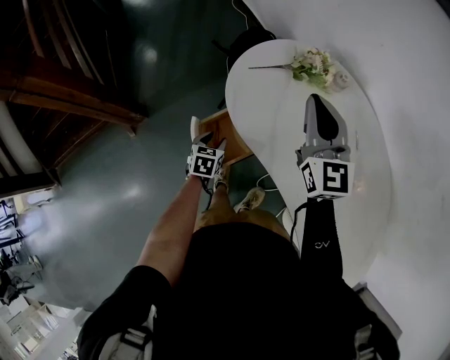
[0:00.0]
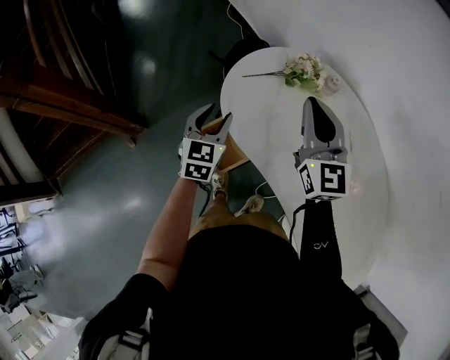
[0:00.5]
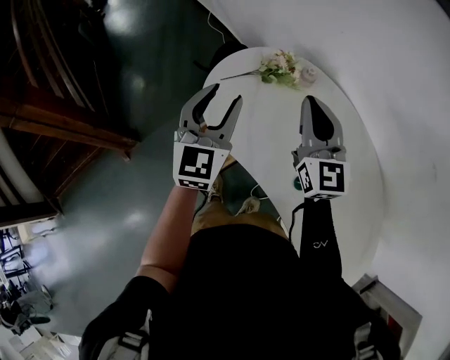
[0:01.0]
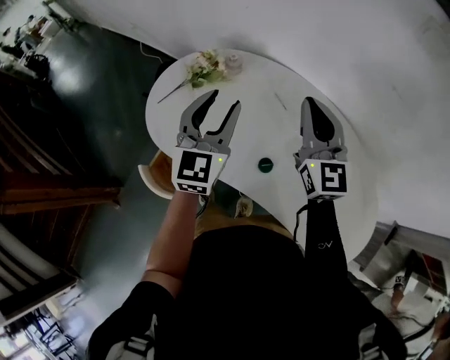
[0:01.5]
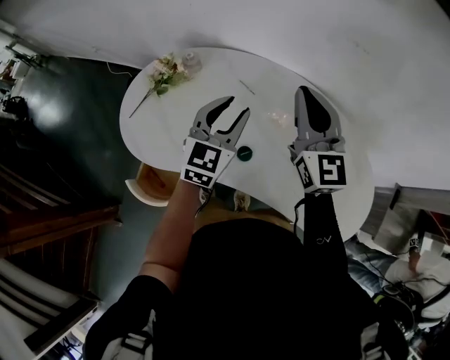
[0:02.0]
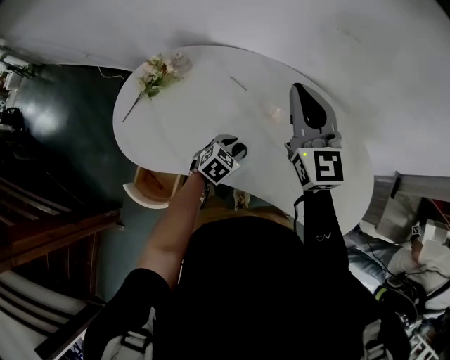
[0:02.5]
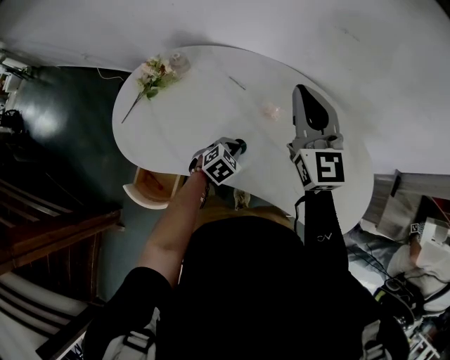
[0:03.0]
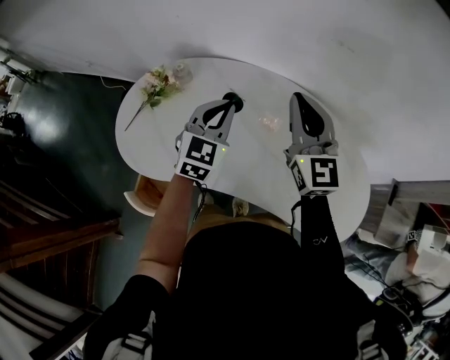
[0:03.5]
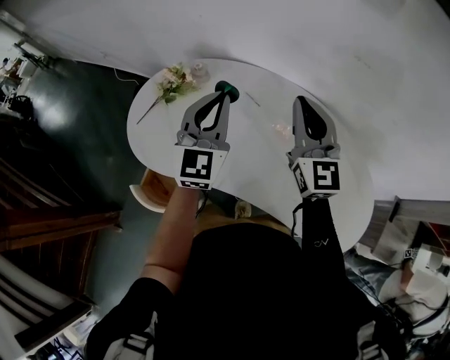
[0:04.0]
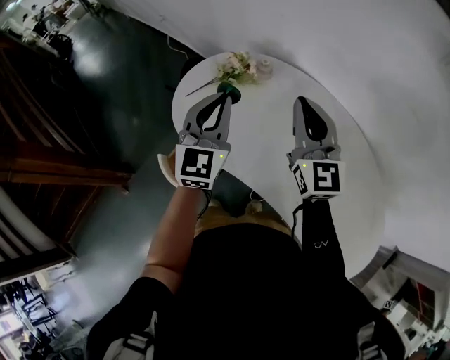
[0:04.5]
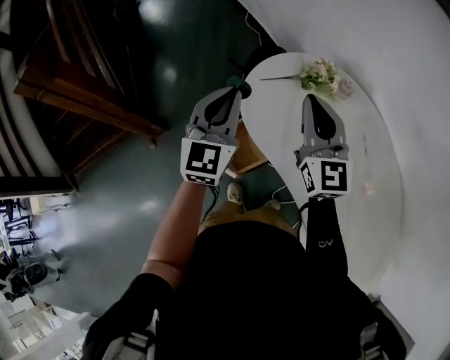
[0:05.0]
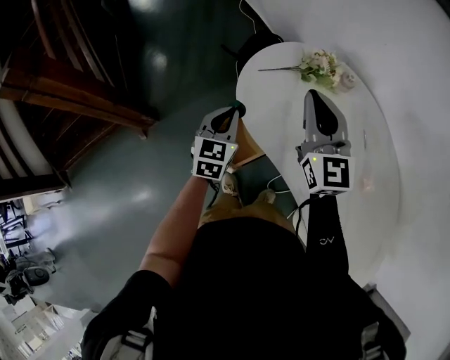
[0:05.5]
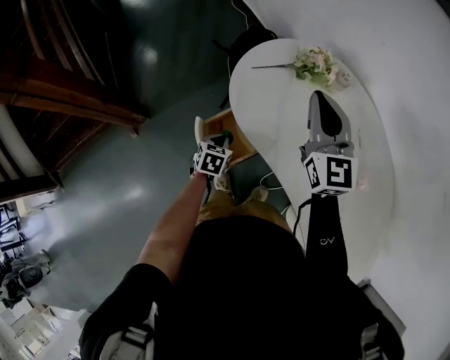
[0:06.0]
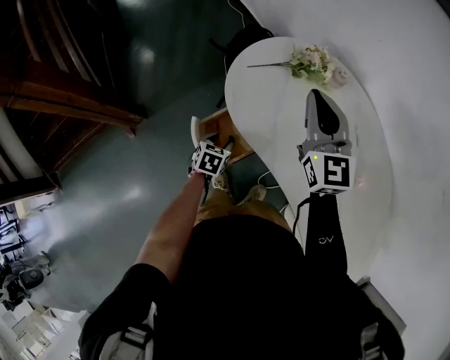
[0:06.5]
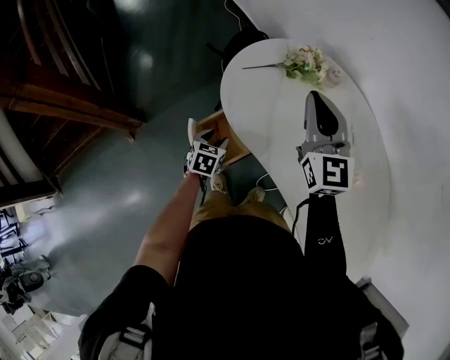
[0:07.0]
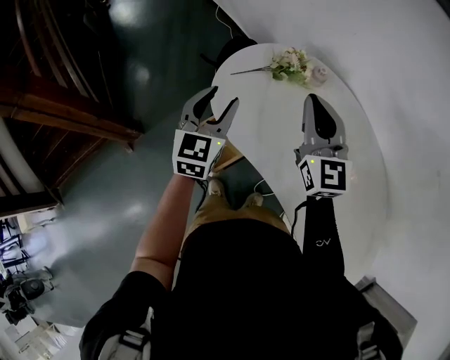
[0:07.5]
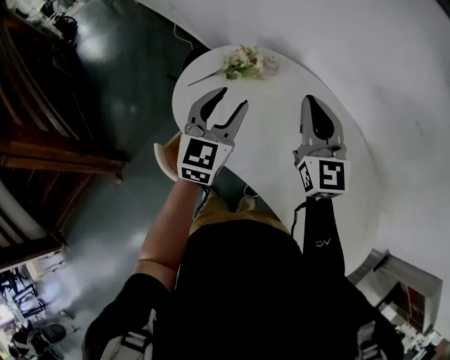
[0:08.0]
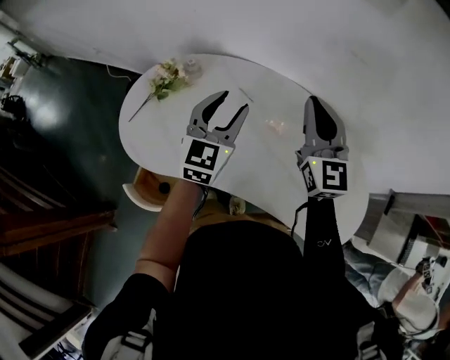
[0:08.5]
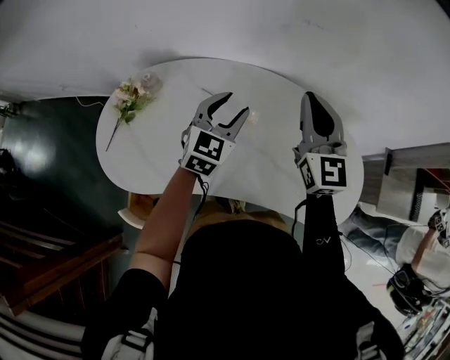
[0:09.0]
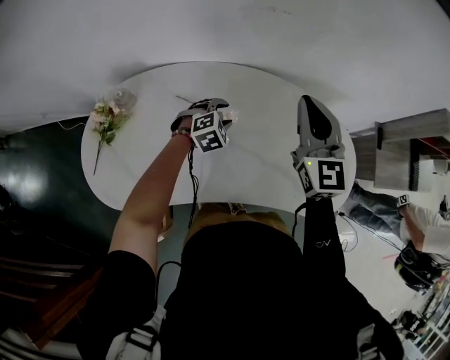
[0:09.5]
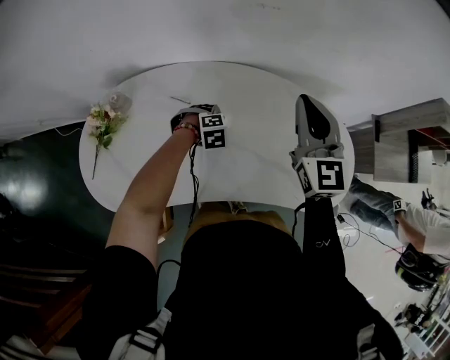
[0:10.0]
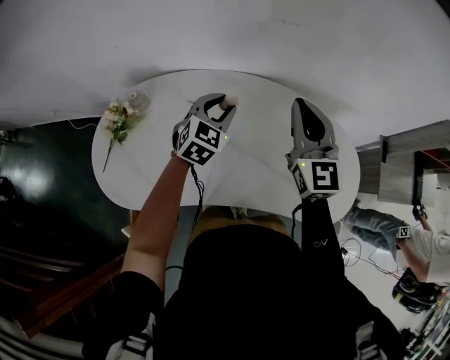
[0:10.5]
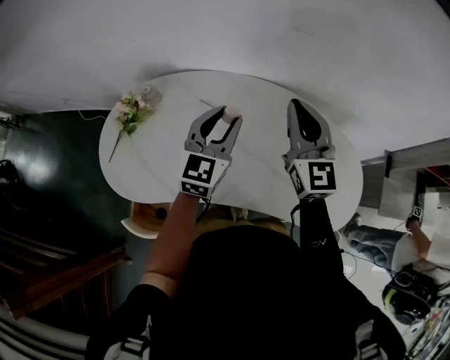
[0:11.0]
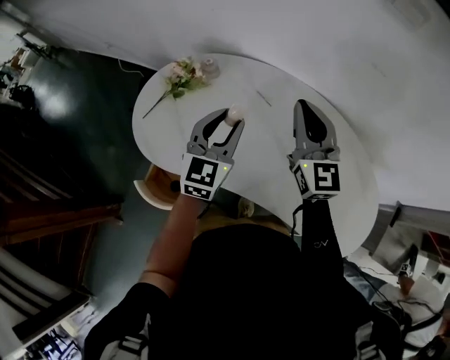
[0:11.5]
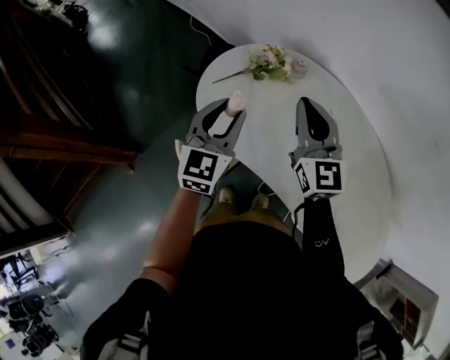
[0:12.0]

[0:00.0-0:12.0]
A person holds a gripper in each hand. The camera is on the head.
0:00.0 to 0:02.0: The right gripper changes place by approximately 35 cm, and swivels some 40 degrees. Meanwhile the left gripper moves approximately 50 cm, and angles its fingers upward, by approximately 40 degrees.
0:02.0 to 0:04.0: The left gripper goes some 5 cm to the left, travels downward and back again, roughly 25 cm each way, and closes up.
0:04.0 to 0:06.0: The right gripper ends up some 35 cm from where it was, and changes its angle by approximately 40 degrees. Meanwhile the left gripper travels downward by some 35 cm, and points its fingers approximately 60 degrees further downward.
0:06.0 to 0:08.0: The right gripper moves to the right and backward, approximately 20 cm. The left gripper moves upward and to the right, some 40 cm, tilts its fingers about 50 degrees upward, and opens.
0:08.0 to 0:10.0: The right gripper moves approximately 30 cm, and turns by some 50 degrees. Meanwhile the left gripper shifts by about 50 cm, and tilts its fingers some 70 degrees downward.
0:10.0 to 0:12.0: Both grippers are carried some 40 cm. The right gripper changes its angle by approximately 50 degrees; the left gripper tips its fingers upward by roughly 60 degrees.

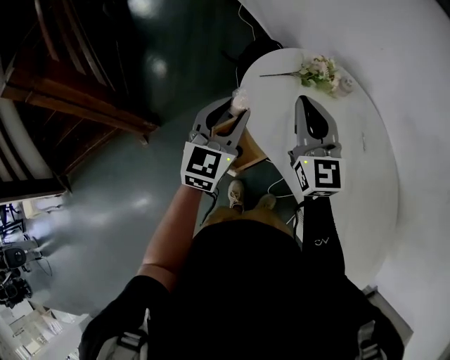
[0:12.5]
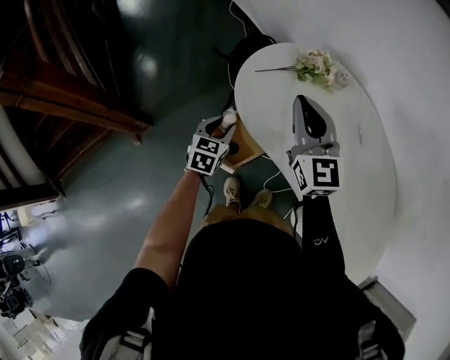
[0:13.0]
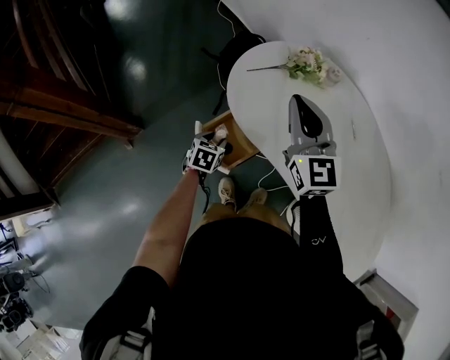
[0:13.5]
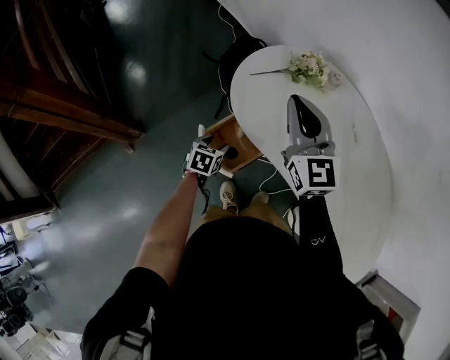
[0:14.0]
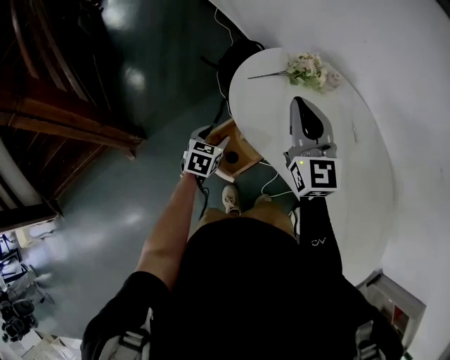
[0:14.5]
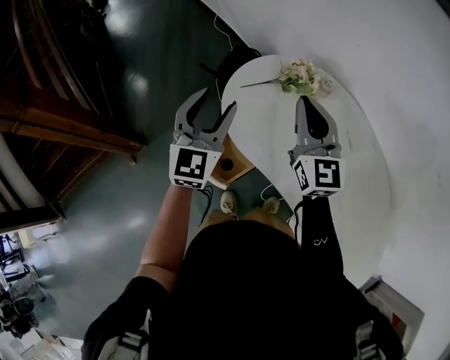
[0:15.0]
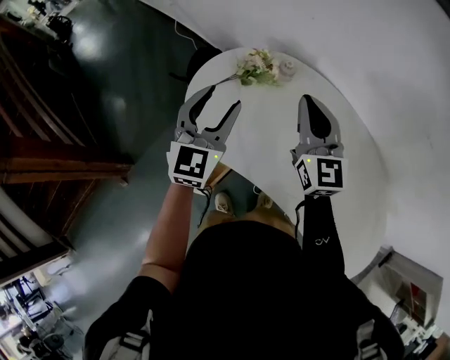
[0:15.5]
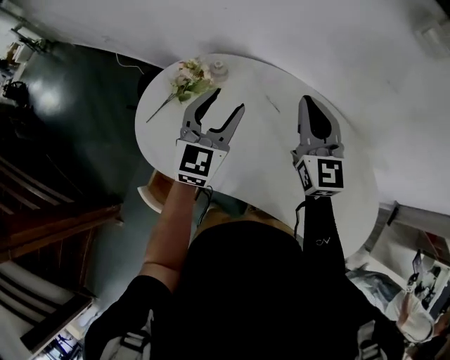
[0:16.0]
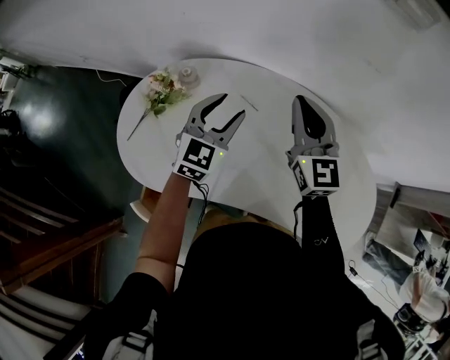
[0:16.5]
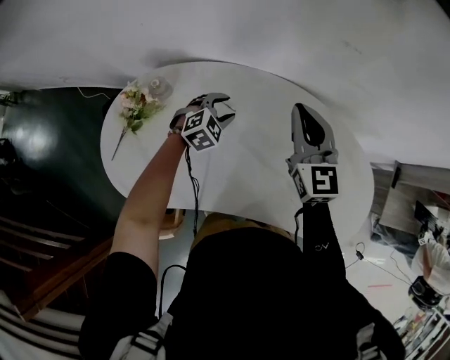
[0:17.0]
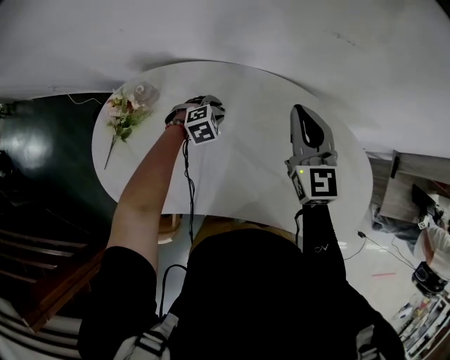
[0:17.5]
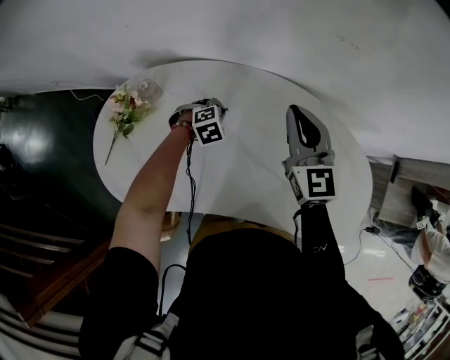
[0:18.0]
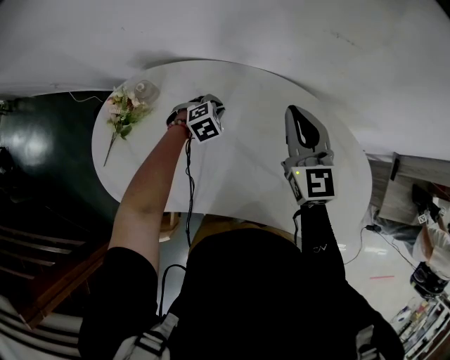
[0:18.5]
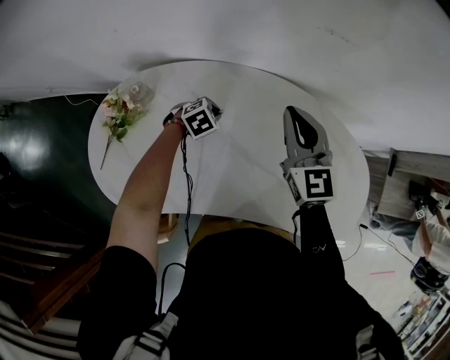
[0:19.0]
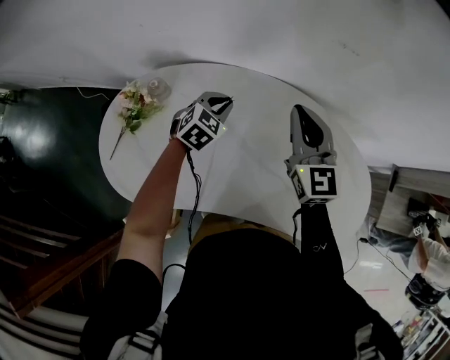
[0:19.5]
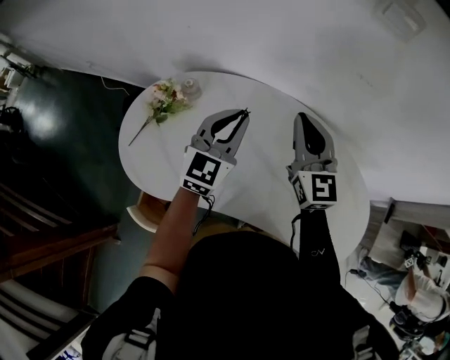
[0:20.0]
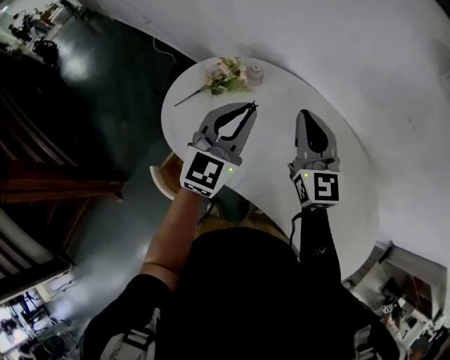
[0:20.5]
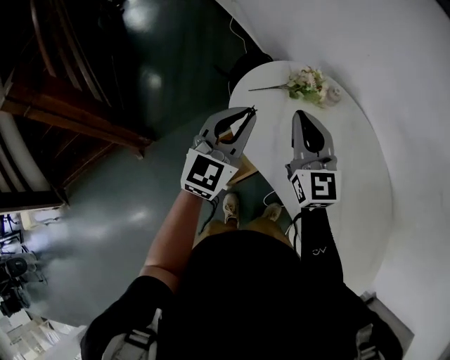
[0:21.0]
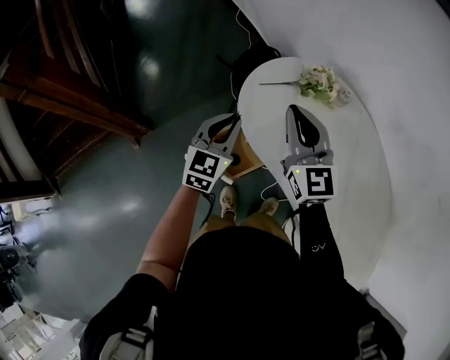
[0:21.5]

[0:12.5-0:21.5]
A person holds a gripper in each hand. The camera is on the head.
0:12.5 to 0:14.5: The left gripper moves downward, roughly 25 cm, tips its fingers downward by roughly 30 degrees, and opens.
0:14.5 to 0:17.0: The two grippers travel together, roughly 50 cm. The left gripper rolls clockwise, seen from behind, by some 80 degrees. Meanwhile the right gripper swivels some 50 degrees.
0:17.0 to 0:19.5: The left gripper closes up.
0:19.5 to 0:21.5: The pair of grippers is taken roughly 50 cm. The left gripper changes its angle by approximately 70 degrees. The right gripper changes its angle by approximately 50 degrees.

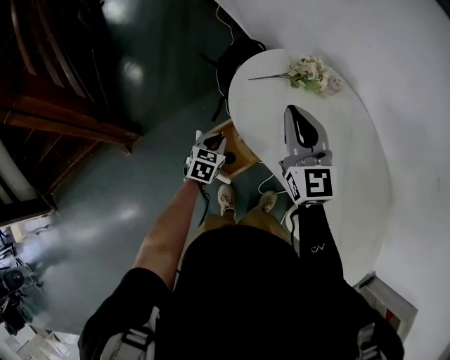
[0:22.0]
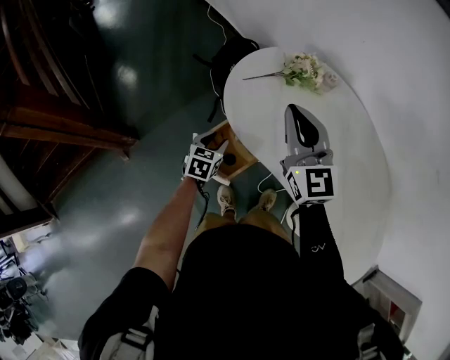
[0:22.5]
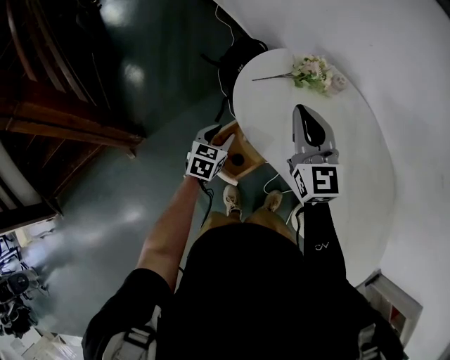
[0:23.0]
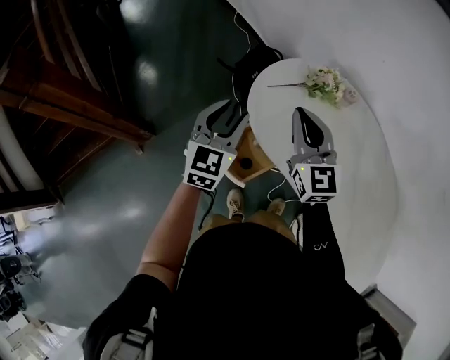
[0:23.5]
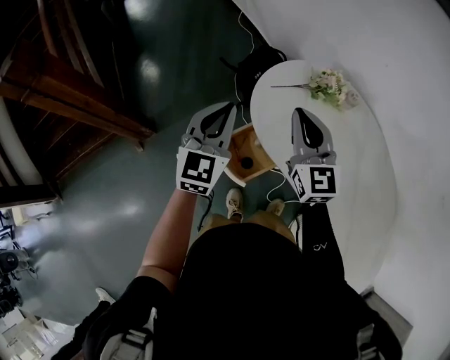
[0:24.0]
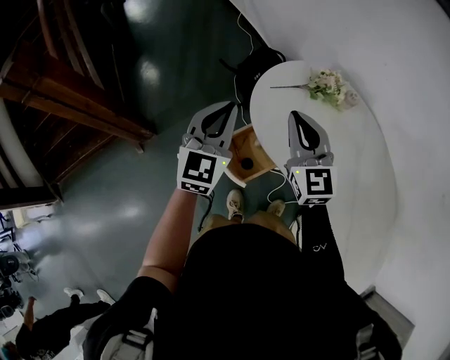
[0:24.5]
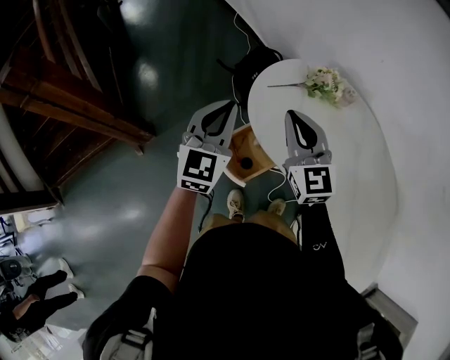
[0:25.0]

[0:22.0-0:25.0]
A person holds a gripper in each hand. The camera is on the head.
0:22.0 to 0:23.5: The left gripper moves upward, roughly 25 cm, angles its fingers upward, by about 30 degrees, and opens.
0:23.5 to 0:25.0: The left gripper closes up.

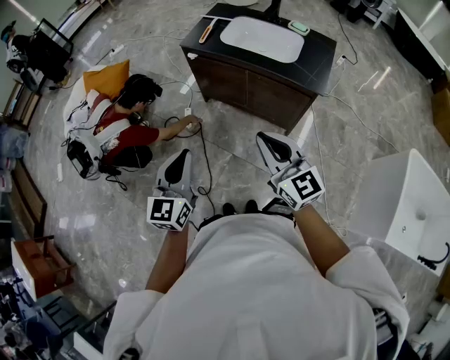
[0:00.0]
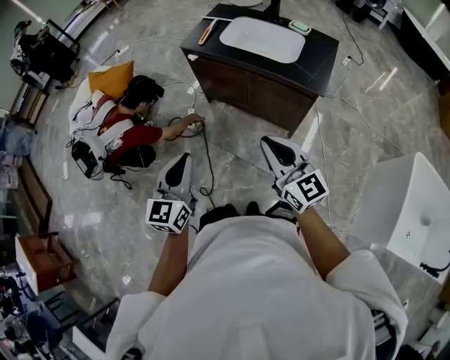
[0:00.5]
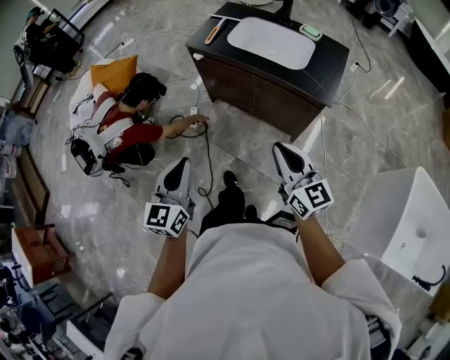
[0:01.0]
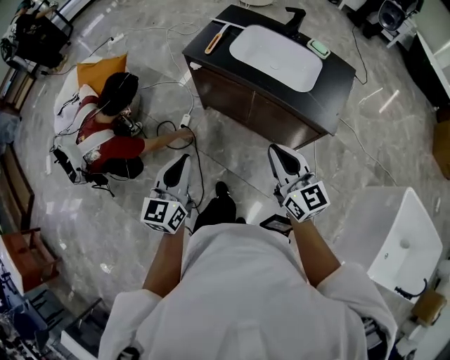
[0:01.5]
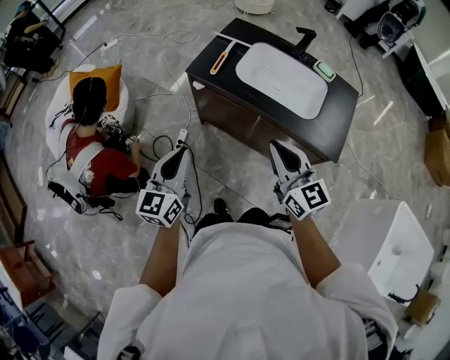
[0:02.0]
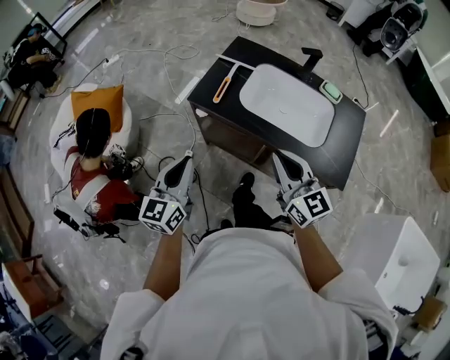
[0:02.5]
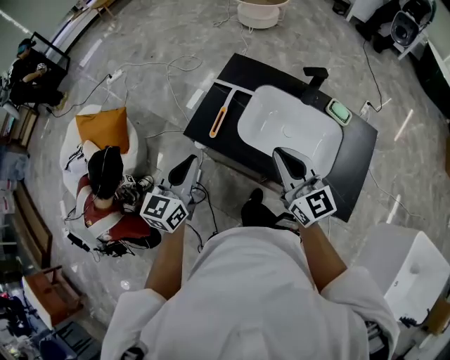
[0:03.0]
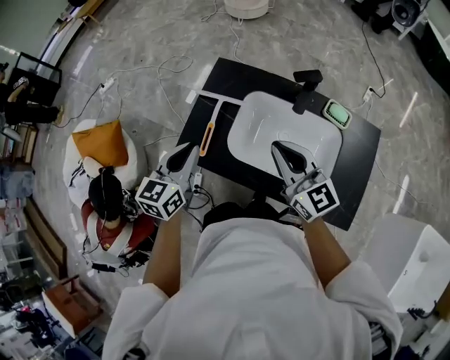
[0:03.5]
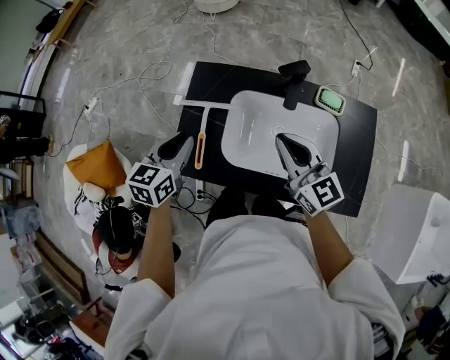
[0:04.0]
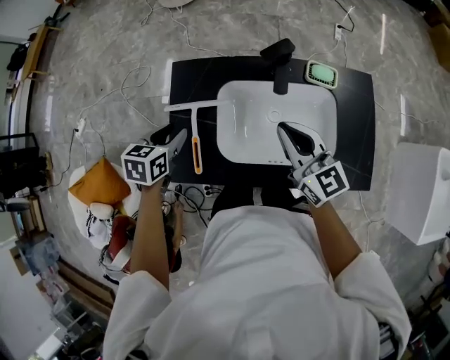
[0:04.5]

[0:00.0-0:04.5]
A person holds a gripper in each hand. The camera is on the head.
0:00.0 to 0:02.0: Both grippers travel together forward, about 30 cm.
0:02.0 to 0:04.5: The pair of grippers is taken roughly 50 cm. The right gripper turns by approximately 20 degrees; the left gripper angles its fingers downward, by about 40 degrees, and opens up.
